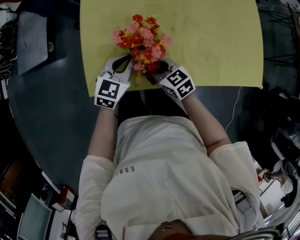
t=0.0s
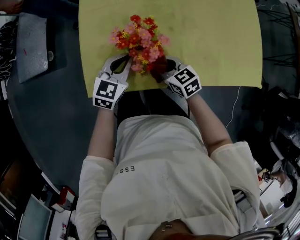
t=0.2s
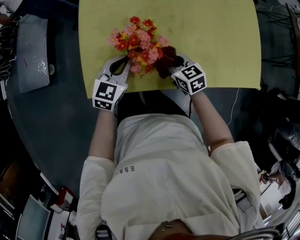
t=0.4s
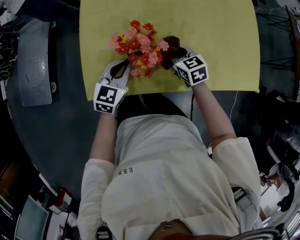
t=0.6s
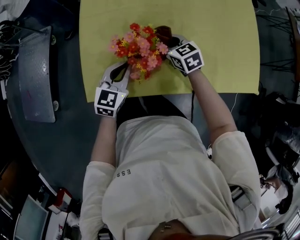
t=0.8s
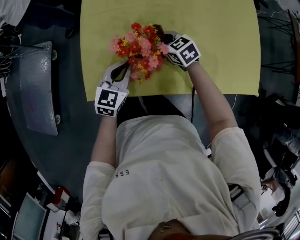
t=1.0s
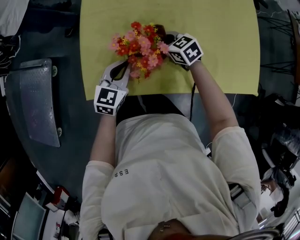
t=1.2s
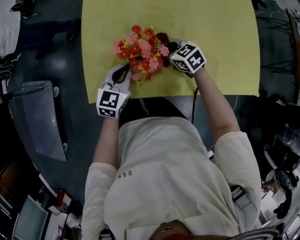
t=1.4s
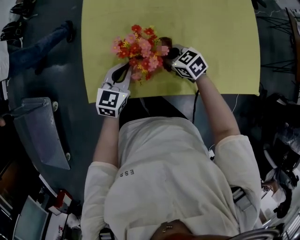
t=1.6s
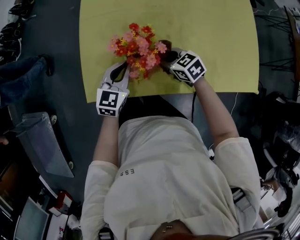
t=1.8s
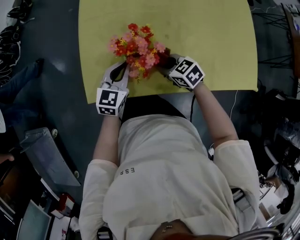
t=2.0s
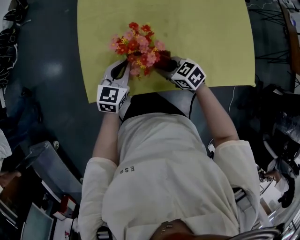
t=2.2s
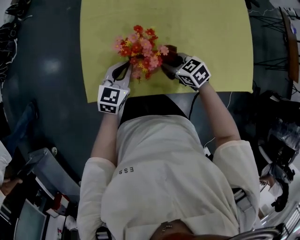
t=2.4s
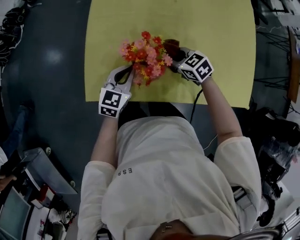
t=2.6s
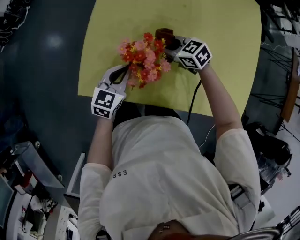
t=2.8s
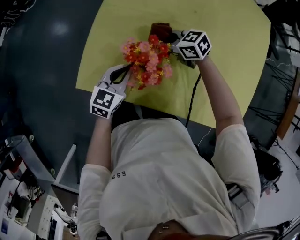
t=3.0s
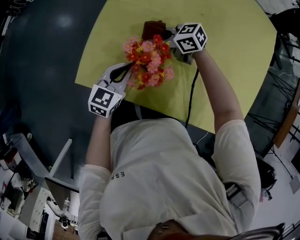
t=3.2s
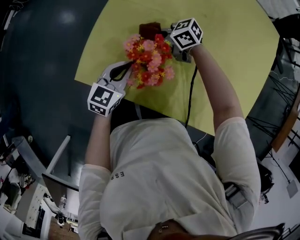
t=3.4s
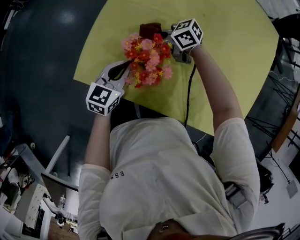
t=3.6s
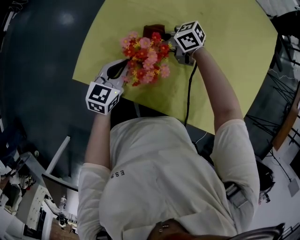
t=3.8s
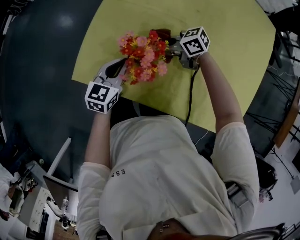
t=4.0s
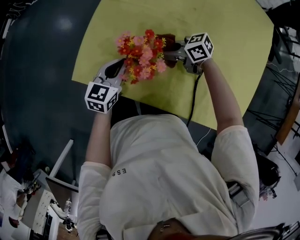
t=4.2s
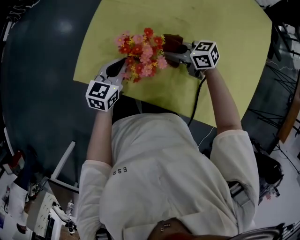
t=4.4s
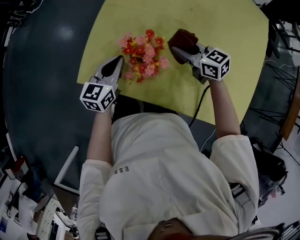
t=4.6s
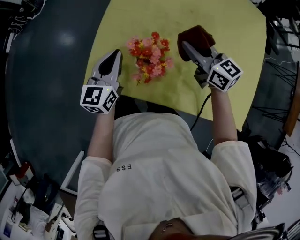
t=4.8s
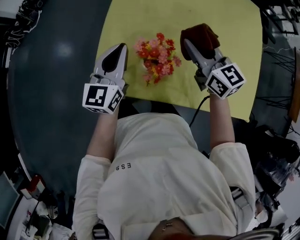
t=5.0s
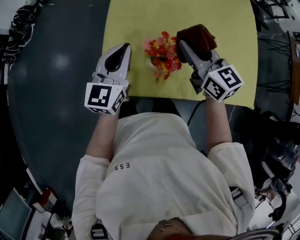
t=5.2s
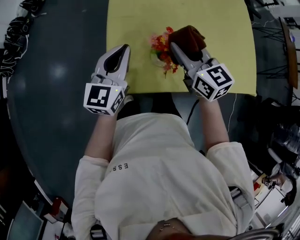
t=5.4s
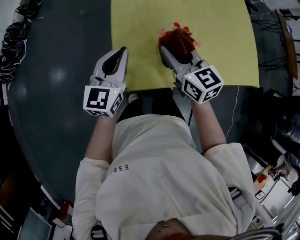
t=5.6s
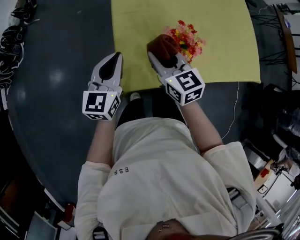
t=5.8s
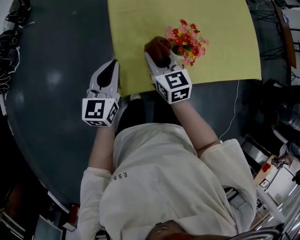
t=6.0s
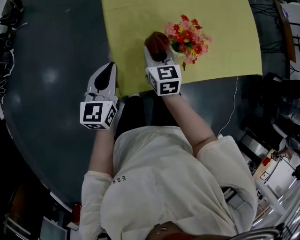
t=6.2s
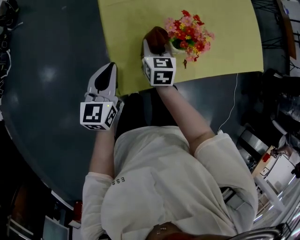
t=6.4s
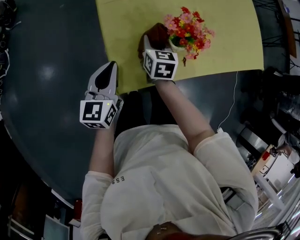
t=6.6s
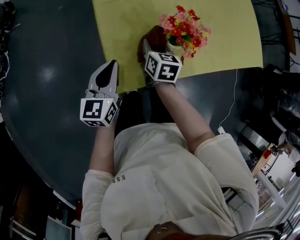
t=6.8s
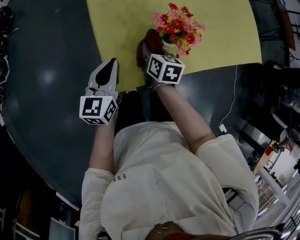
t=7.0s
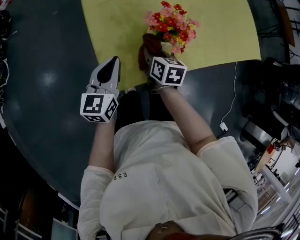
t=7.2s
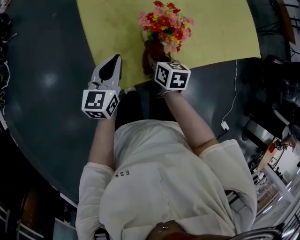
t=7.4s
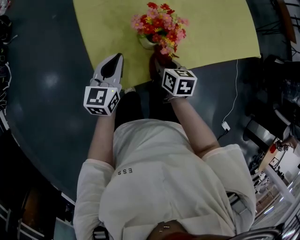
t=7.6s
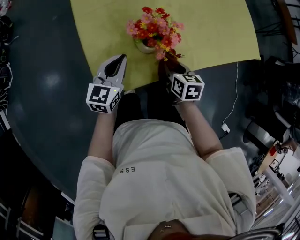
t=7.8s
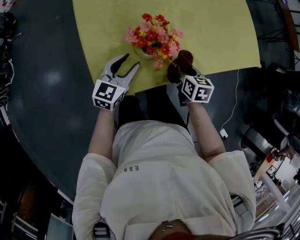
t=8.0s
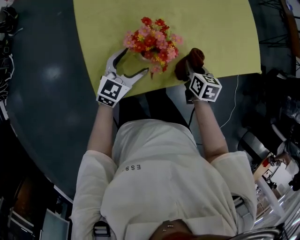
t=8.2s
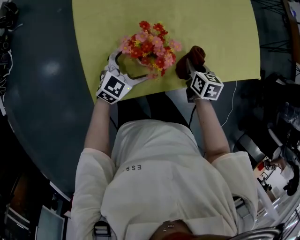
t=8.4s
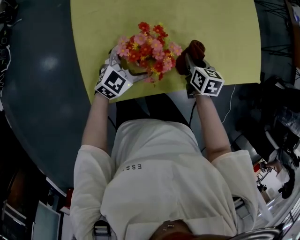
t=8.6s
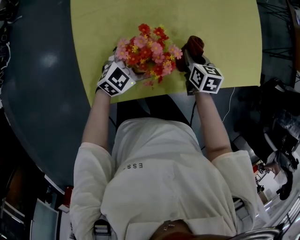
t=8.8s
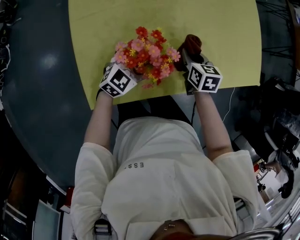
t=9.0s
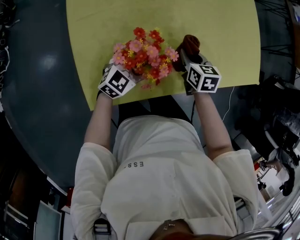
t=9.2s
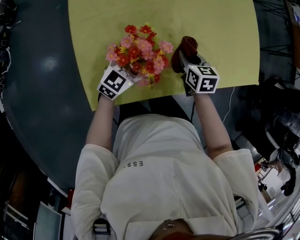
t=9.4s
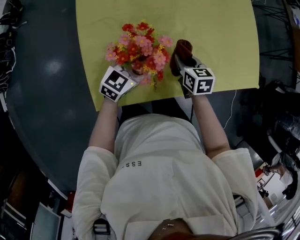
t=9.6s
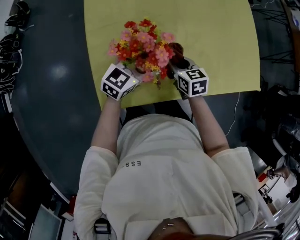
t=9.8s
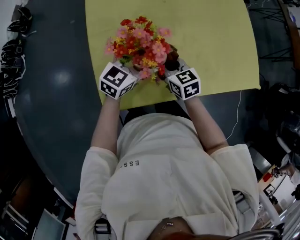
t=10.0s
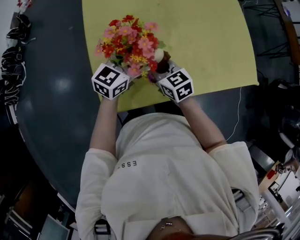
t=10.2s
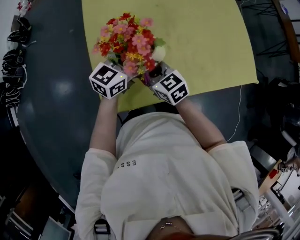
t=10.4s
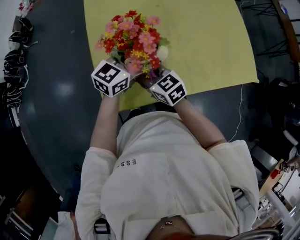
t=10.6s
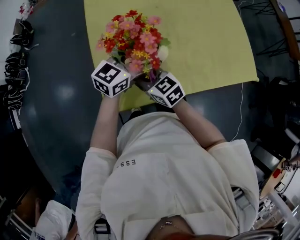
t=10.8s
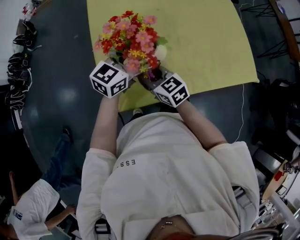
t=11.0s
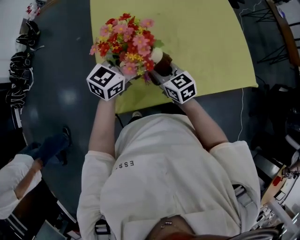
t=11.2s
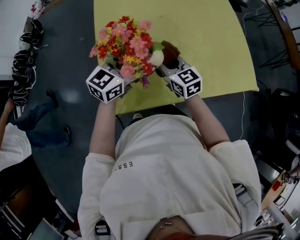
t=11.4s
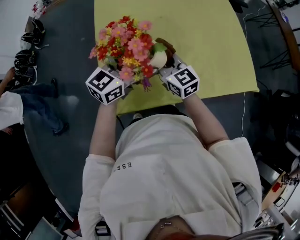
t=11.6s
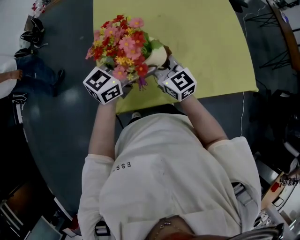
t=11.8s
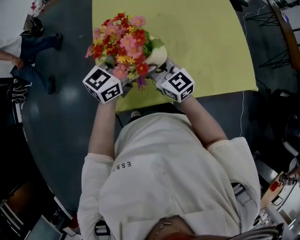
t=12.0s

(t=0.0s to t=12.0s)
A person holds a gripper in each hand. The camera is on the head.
t=0.0s - t=1.6s: The right gripper goes some 10 cm to the right and forward.
t=1.6s - t=3.0s: The right gripper travels forward by approximately 10 cm, and rotates some 30 degrees.
t=3.0s - t=4.4s: The right gripper changes place by roughly 5 cm.
t=4.4s - t=6.0s: The right gripper changes place by about 25 cm, and swivels roughly 70 degrees. Meanwhile the left gripper moves roughly 25 cm, and changes its angle by some 20 degrees.
t=6.0s - t=7.6s: The grippers both shift to the right and downward by about 15 cm. The right gripper changes its angle by approximately 40 degrees.
t=7.6s - t=9.0s: The right gripper travels forward and to the right by about 20 cm, while the left gripper travels to the right, forward and downward by approximately 20 cm, changes its angle by approximately 40 degrees, and opens up.
t=9.0s - t=10.4s: The left gripper moves upward, about 20 cm, and turns by roughly 30 degrees. The right gripper travels to the left, upward and backward by approximately 20 cm, and changes its angle by some 40 degrees.
t=10.4s - t=12.0s: The two grippers go some 10 cm upward. The right gripper travels to the right and back again, about 5 cm each way, and swivels about 20 degrees.

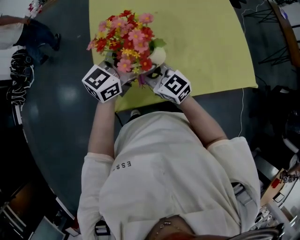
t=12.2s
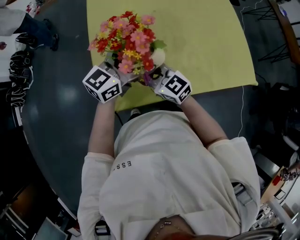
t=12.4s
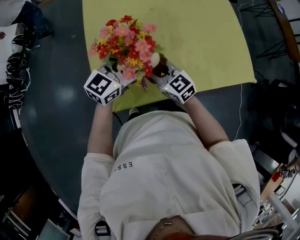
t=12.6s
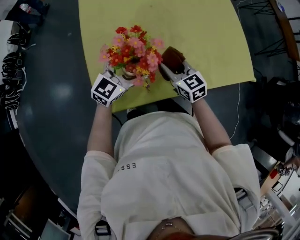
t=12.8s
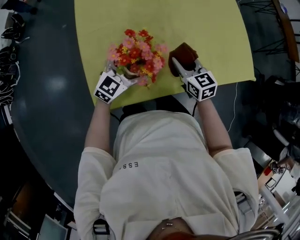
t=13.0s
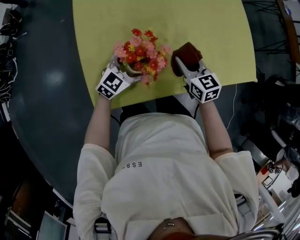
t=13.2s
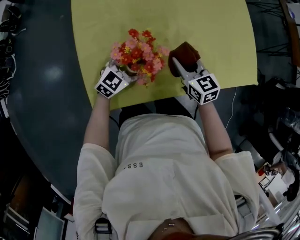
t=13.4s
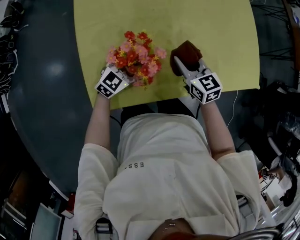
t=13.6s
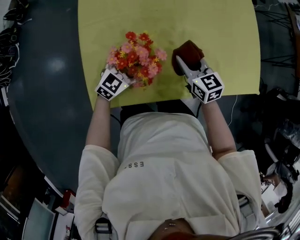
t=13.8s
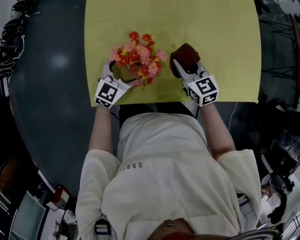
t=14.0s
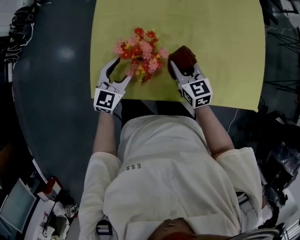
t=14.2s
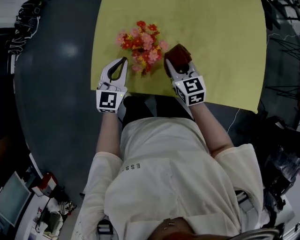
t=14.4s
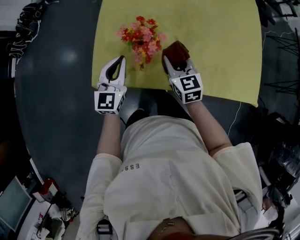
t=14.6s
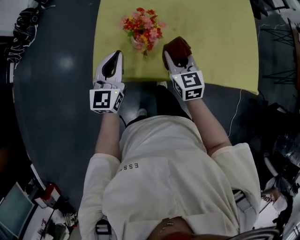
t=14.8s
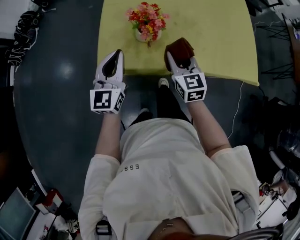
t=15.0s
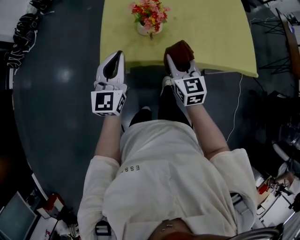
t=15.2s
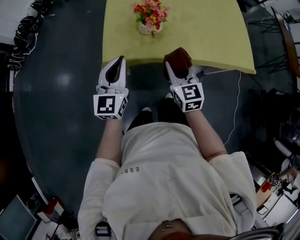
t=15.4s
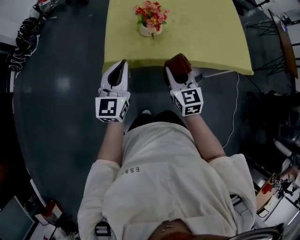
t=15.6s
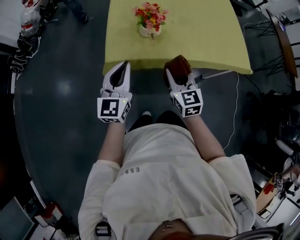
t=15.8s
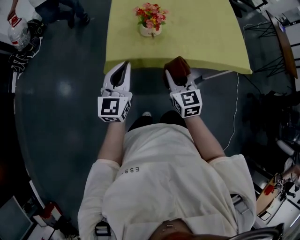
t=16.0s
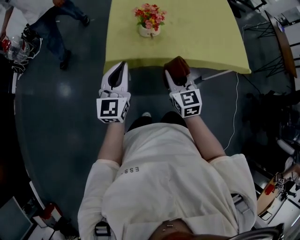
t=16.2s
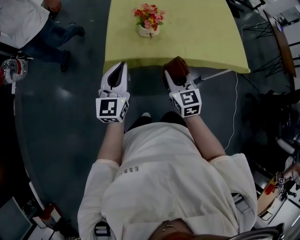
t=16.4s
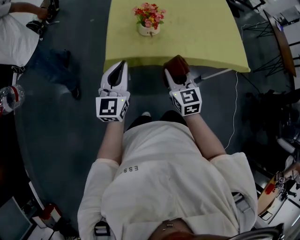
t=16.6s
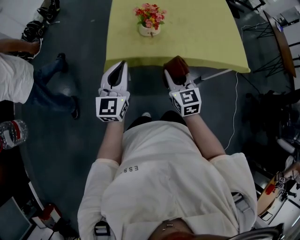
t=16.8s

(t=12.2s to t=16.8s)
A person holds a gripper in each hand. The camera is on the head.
t=12.2s - t=13.8s: The right gripper goes some 20 cm to the right, downward and forward, and turns by roughly 30 degrees. Meanwhile the left gripper heads downward, covering approximately 25 cm, and turns by roughly 30 degrees.
t=13.8s - t=15.2s: The right gripper ends up some 25 cm from where it was. The left gripper changes place by roughly 30 cm, swivels about 50 degrees, and closes its fingers.
t=15.2s - t=16.8s: The grippers both shift backward by about 10 cm.

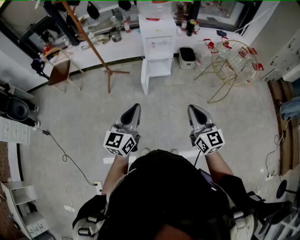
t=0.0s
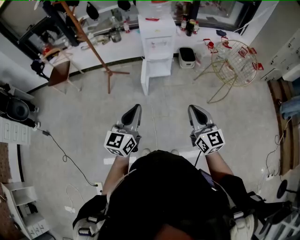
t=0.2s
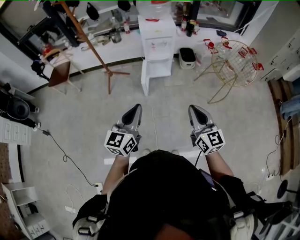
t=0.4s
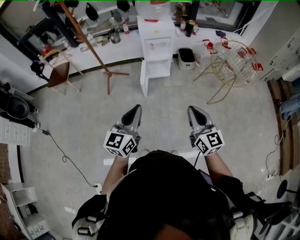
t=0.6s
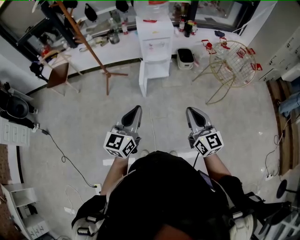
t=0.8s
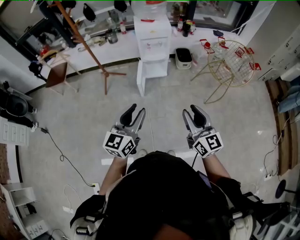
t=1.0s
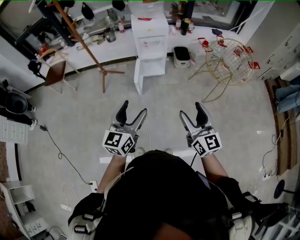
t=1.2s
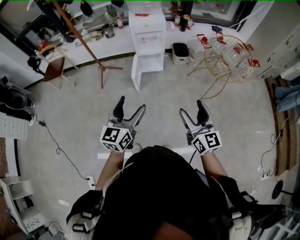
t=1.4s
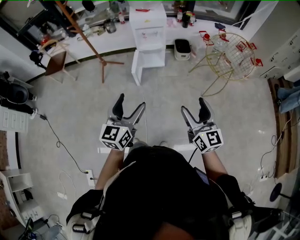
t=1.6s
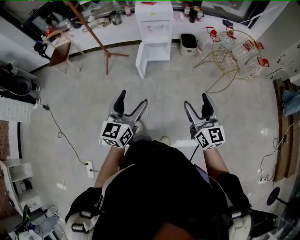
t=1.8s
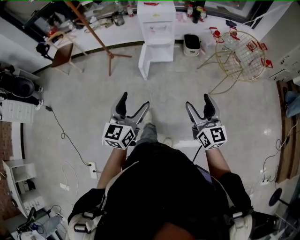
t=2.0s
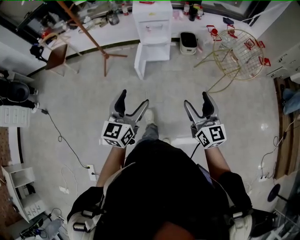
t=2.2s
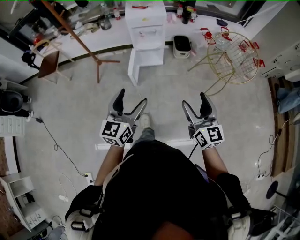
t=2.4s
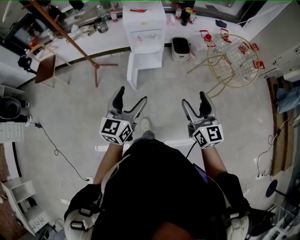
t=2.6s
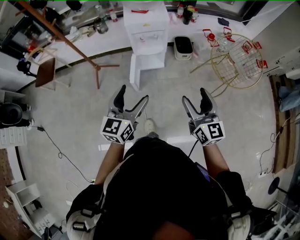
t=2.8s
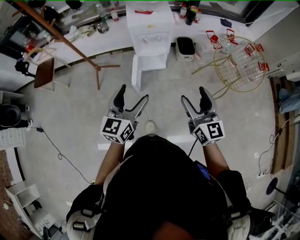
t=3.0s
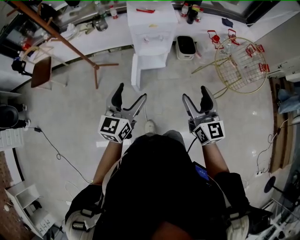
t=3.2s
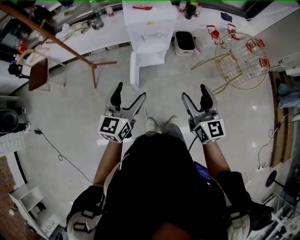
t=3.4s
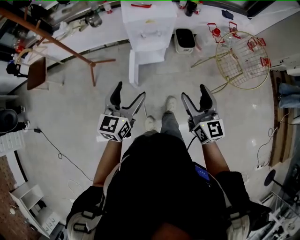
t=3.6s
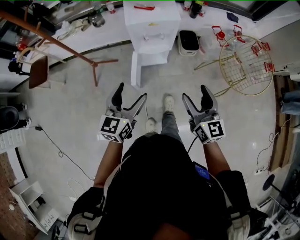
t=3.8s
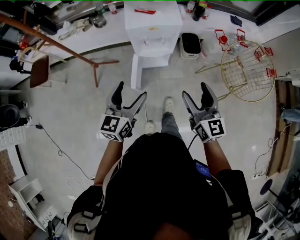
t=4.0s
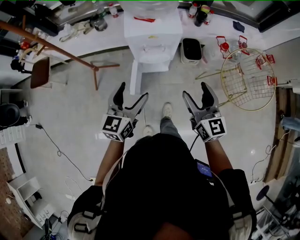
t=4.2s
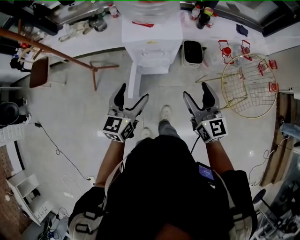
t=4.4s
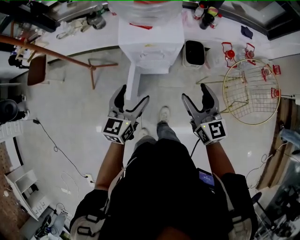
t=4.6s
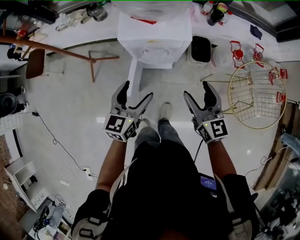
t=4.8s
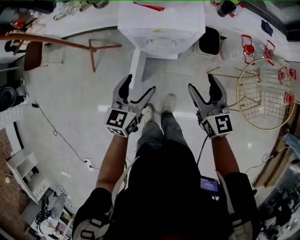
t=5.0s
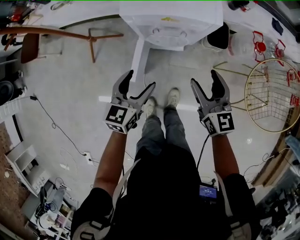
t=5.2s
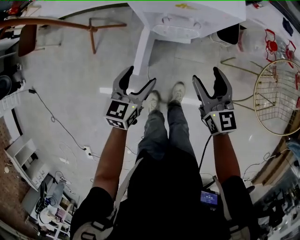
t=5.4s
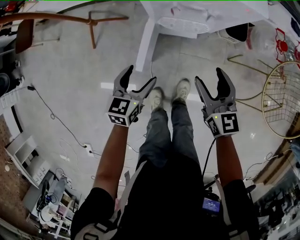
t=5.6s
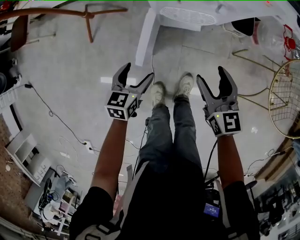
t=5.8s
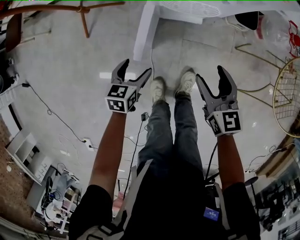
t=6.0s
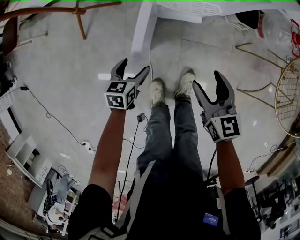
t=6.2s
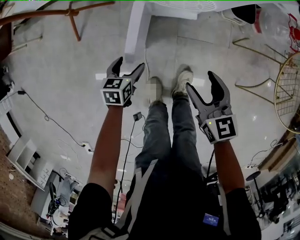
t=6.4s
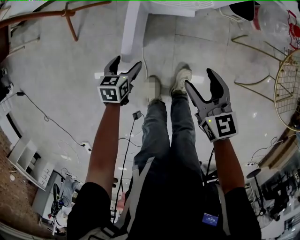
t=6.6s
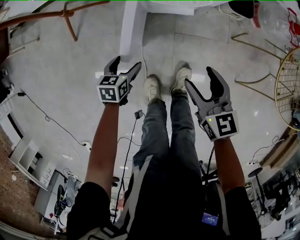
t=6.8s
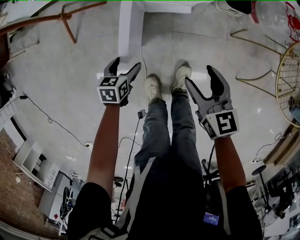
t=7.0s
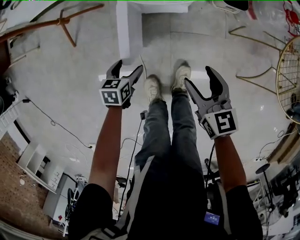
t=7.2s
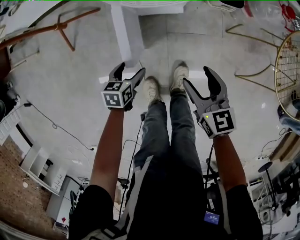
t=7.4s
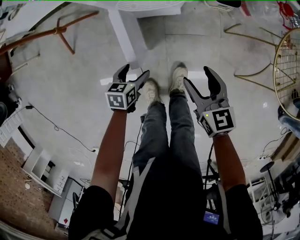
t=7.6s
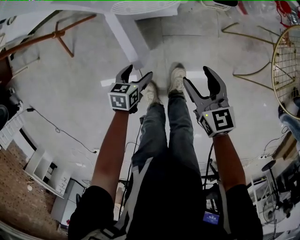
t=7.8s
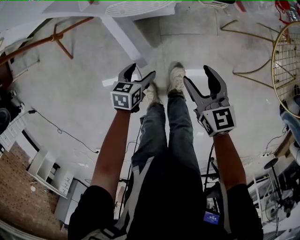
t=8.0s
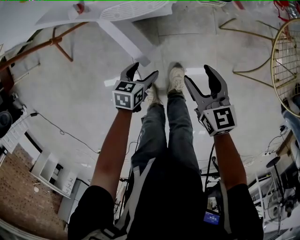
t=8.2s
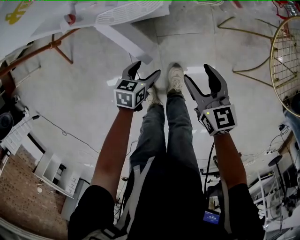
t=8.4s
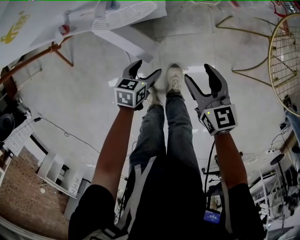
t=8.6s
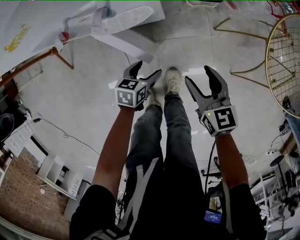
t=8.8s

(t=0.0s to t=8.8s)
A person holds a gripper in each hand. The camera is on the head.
t=0.0s - t=1.4s: The two grippers go about 10 cm to the right. The left gripper opens. Meanwhile the right gripper opens.
t=1.4s - t=3.0s: The two grippers go approximately 25 cm forward.
t=3.0s - t=4.4s: Both grippers travel together forward, roughly 25 cm.
t=4.4s - t=5.8s: Both grippers travel together downward, about 35 cm. The left gripper turns by roughly 30 degrees.
t=5.8s - t=7.4s: The left gripper moves downward, approximately 15 cm. Meanwhile the right gripper moves downward, about 10 cm.
t=7.4s - t=8.8s: The left gripper shifts some 20 cm to the right and forward. The right gripper travels to the right and forward by approximately 10 cm.
